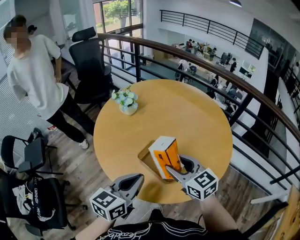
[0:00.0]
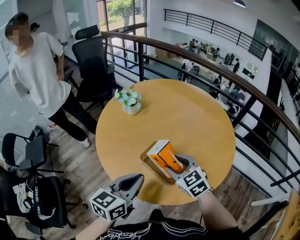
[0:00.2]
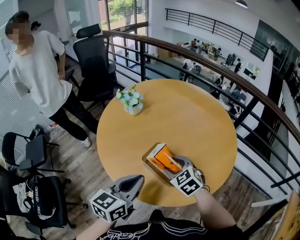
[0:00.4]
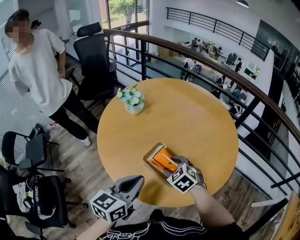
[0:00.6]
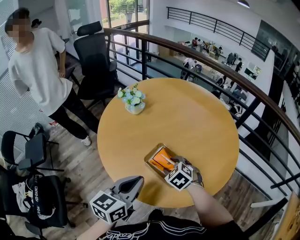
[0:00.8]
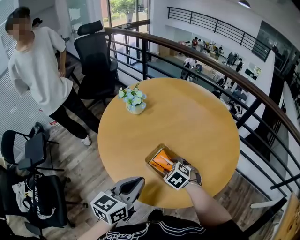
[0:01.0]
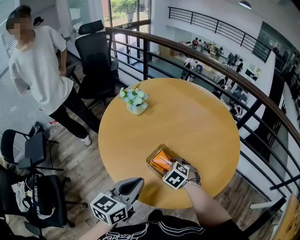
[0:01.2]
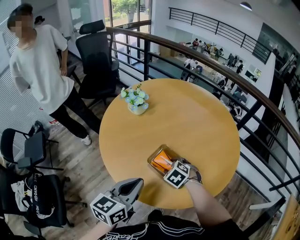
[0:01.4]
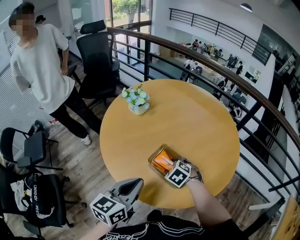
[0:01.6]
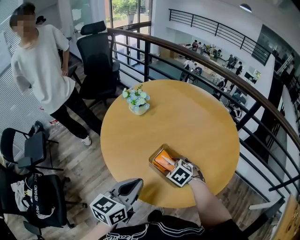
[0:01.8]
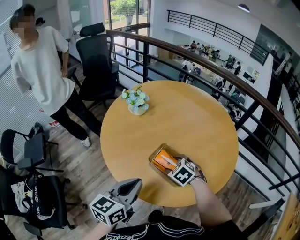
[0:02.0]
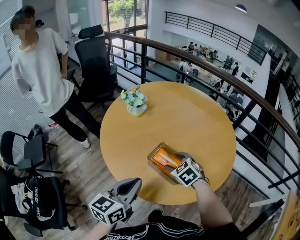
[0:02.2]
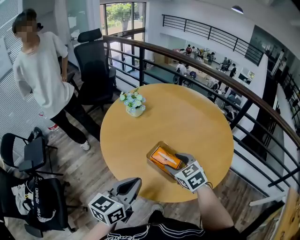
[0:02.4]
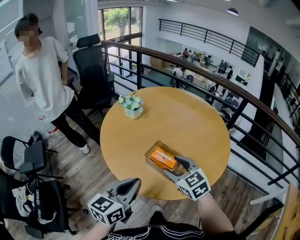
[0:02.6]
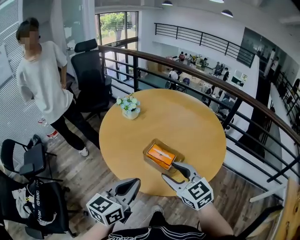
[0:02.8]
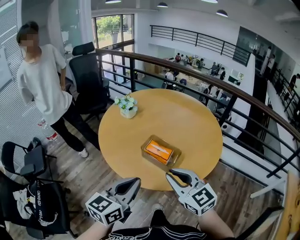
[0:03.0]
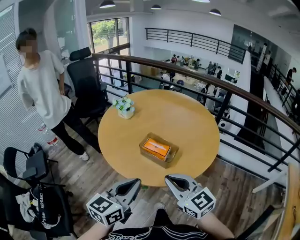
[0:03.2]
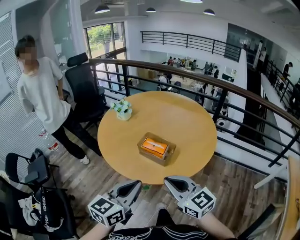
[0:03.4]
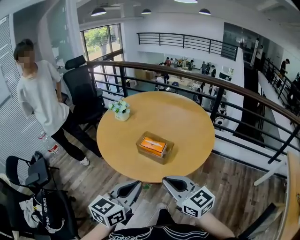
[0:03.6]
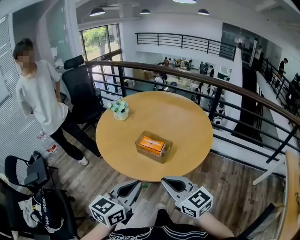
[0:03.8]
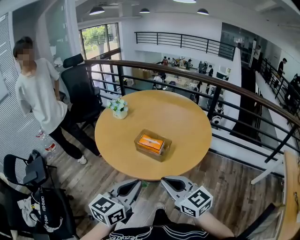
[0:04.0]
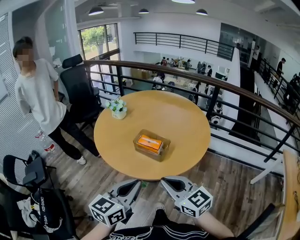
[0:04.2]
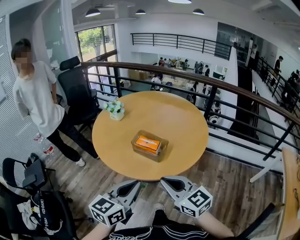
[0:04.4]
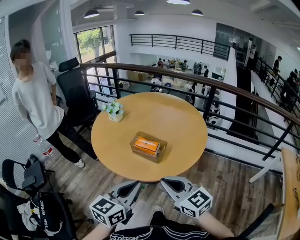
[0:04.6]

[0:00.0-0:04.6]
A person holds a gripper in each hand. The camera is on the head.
0:00.0 to 0:01.6: The right gripper travels downward by some 15 cm, and angles its fingers downward, by roughly 50 degrees.
0:01.6 to 0:03.0: The left gripper is displaced backward and upward by roughly 10 cm; the right gripper is displaced upward and backward by about 25 cm, tips its fingers upward by roughly 50 degrees, and closes its fingers.
0:03.0 to 0:04.6: The grippers both shift backward by approximately 5 cm.

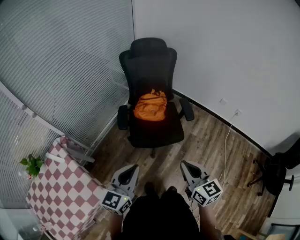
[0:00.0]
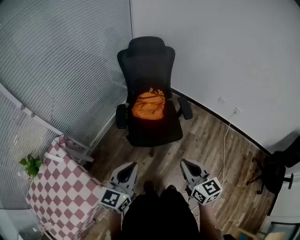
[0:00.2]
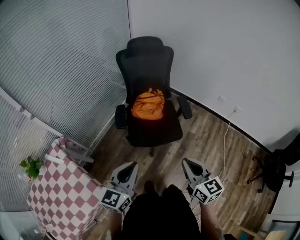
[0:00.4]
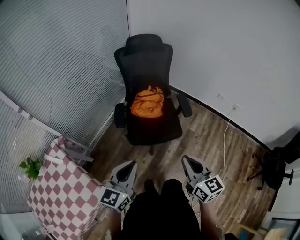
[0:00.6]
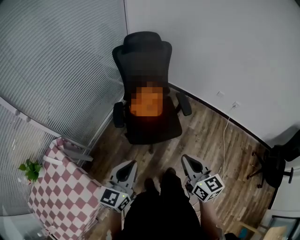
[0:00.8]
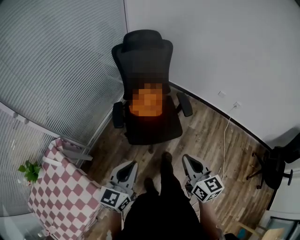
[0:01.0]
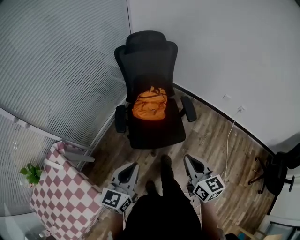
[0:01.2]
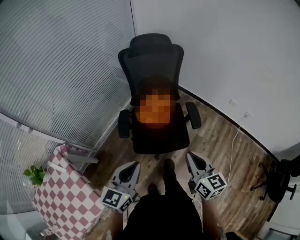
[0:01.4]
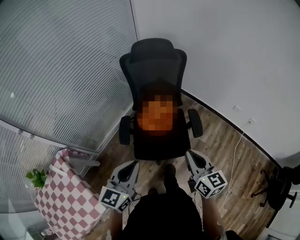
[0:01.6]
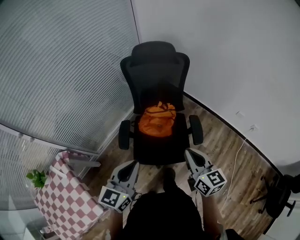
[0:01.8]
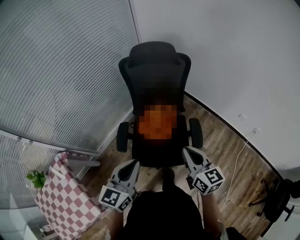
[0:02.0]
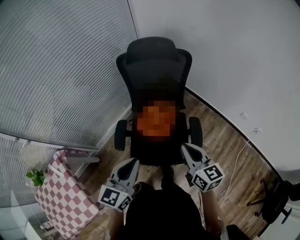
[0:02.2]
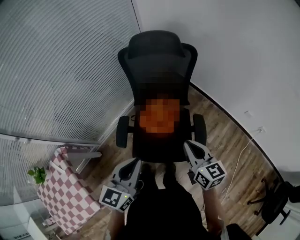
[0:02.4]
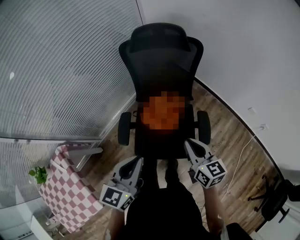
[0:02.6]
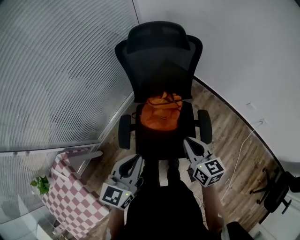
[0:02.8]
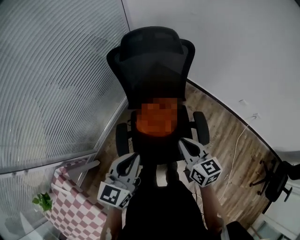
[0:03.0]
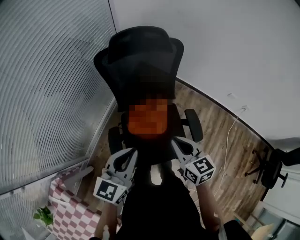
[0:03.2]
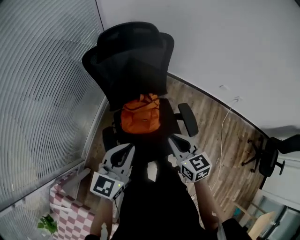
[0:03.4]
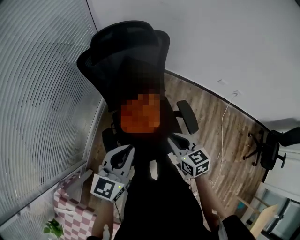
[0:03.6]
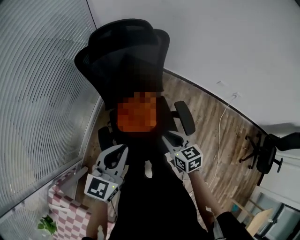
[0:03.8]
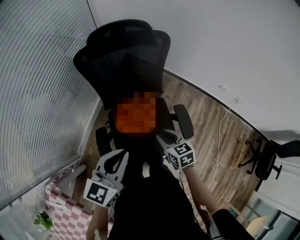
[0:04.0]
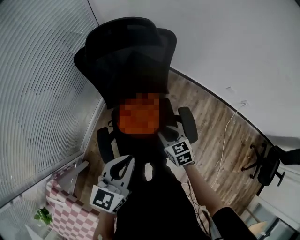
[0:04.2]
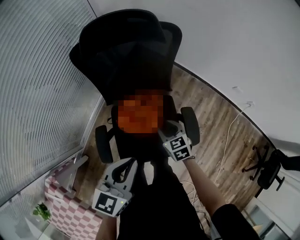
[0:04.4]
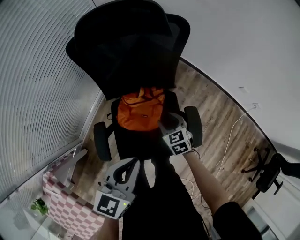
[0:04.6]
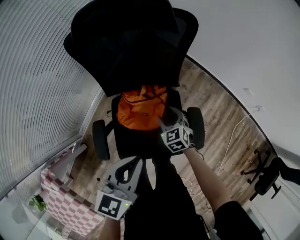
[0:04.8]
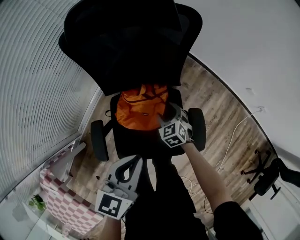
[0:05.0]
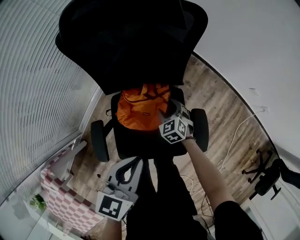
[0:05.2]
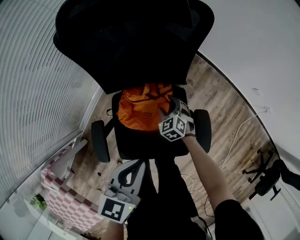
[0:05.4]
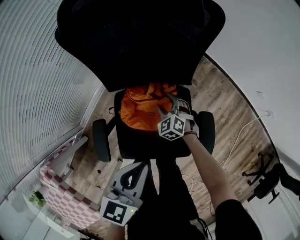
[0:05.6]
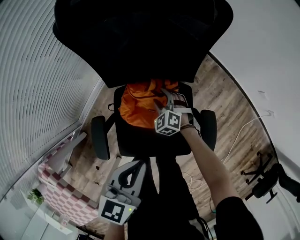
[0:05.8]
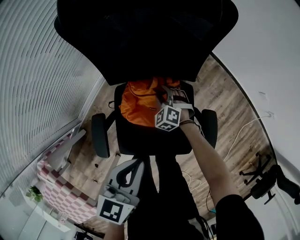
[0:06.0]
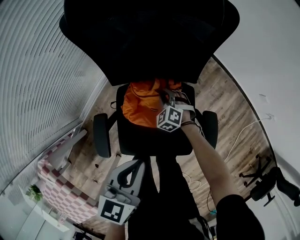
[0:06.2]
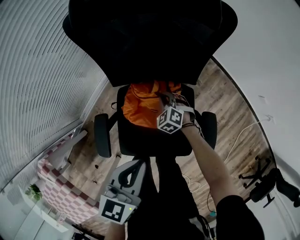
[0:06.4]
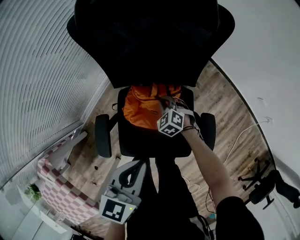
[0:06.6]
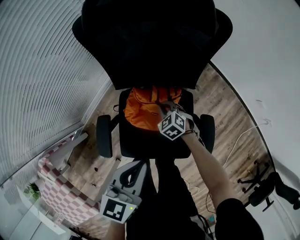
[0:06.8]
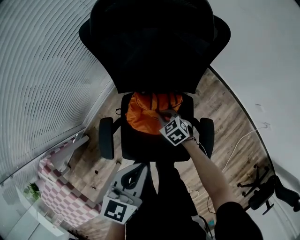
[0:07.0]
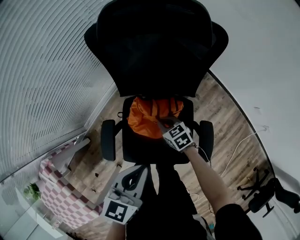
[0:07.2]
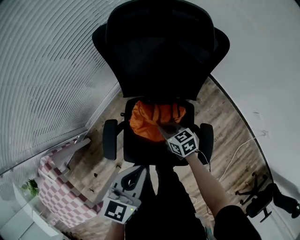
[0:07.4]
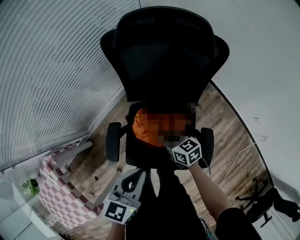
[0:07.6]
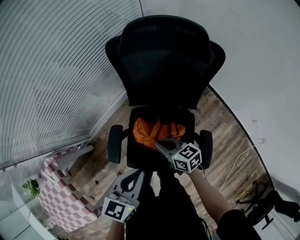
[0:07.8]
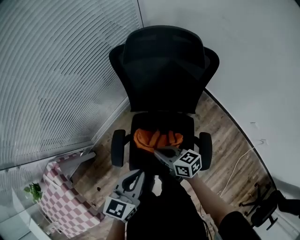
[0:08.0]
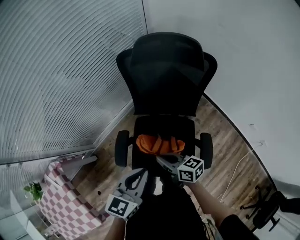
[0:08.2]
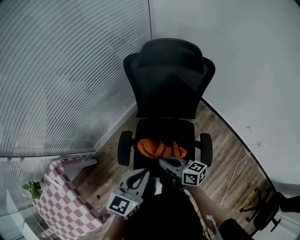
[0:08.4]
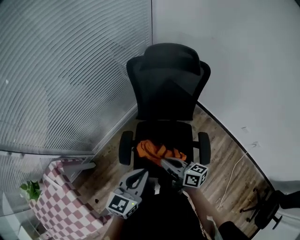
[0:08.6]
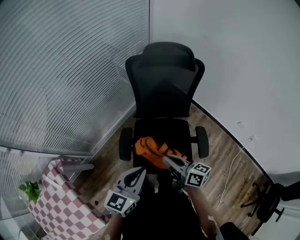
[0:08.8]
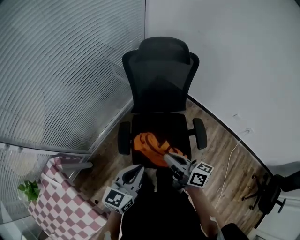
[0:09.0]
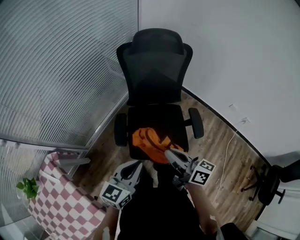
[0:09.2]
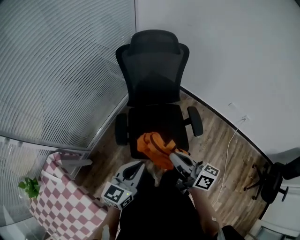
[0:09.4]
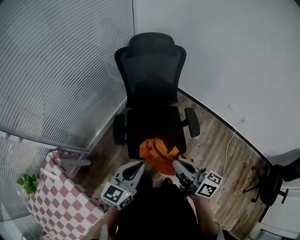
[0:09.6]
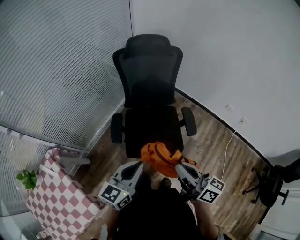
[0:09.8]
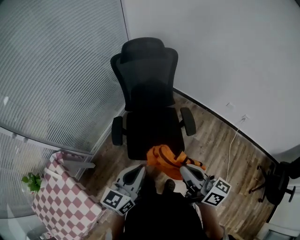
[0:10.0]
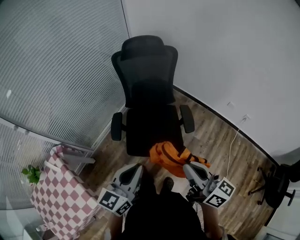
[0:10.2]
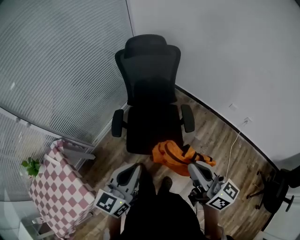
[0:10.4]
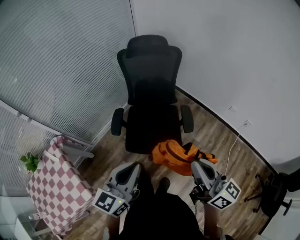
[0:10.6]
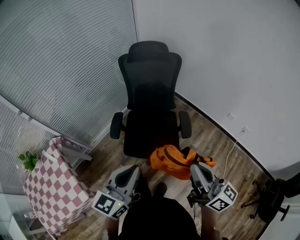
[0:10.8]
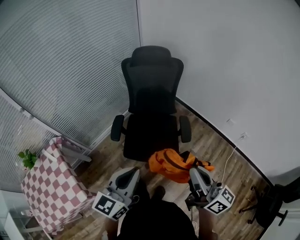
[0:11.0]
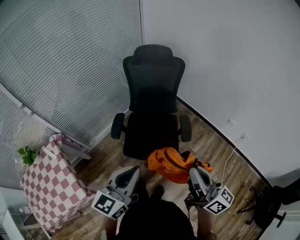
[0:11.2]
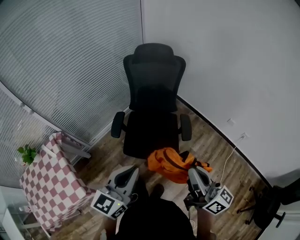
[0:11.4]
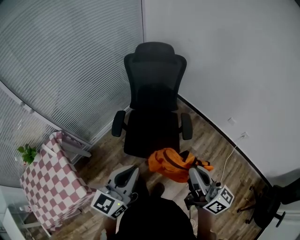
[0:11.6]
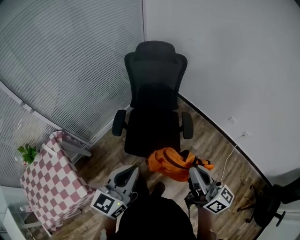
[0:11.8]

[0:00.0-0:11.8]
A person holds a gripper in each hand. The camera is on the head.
0:00.0 to 0:01.4: The two grippers go some 15 cm forward.
0:01.4 to 0:03.0: The two grippers go about 30 cm forward.
0:03.0 to 0:04.4: The right gripper heads downward and forward, covering about 25 cm, rotates approximately 30 degrees, and opens its fingers. Meanwhile the left gripper moves forward, to the right and downward, approximately 10 cm.
0:04.4 to 0:06.0: The right gripper goes about 25 cm downward and forward, and twists approximately 50 degrees counterclockwise, seen from behind. The left gripper moves downward and forward, some 15 cm.
0:06.0 to 0:07.4: The right gripper moves upward and backward, some 15 cm, rotates around the line of its fingers by about 50 degrees, clockwise from behind, and closes its fingers. The left gripper moves upward, approximately 5 cm.
0:07.4 to 0:08.8: The right gripper heads upward, backward and to the left, covering some 35 cm, and points its fingers about 30 degrees further upward. The left gripper travels backward, to the left and upward by roughly 20 cm.
0:08.8 to 0:10.4: The left gripper travels backward, to the right and upward by roughly 25 cm; the right gripper heads backward, to the right and upward, covering about 35 cm, and turns by roughly 30 degrees.
0:10.4 to 0:11.8: The grippers make only small movements.

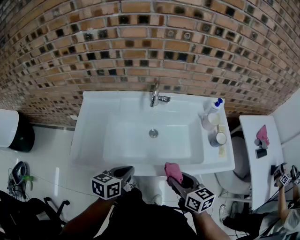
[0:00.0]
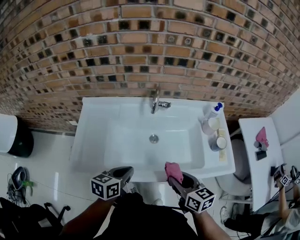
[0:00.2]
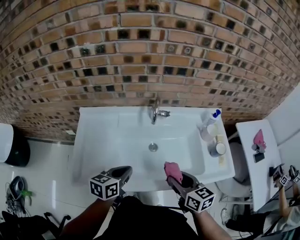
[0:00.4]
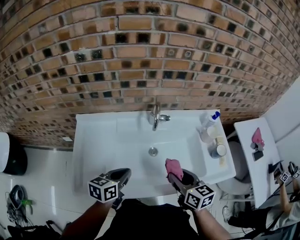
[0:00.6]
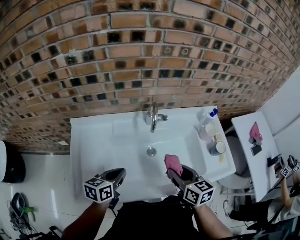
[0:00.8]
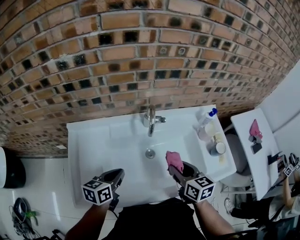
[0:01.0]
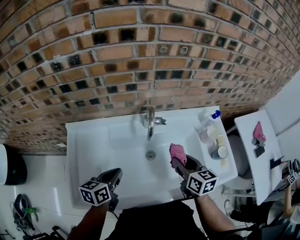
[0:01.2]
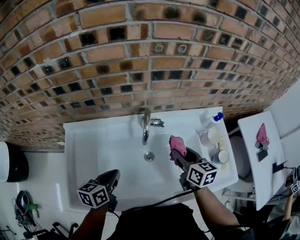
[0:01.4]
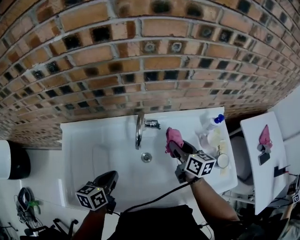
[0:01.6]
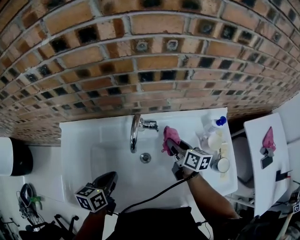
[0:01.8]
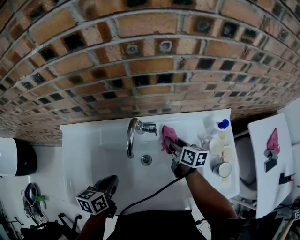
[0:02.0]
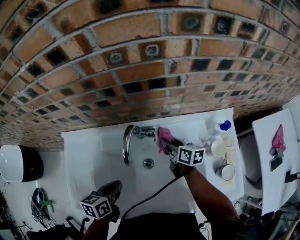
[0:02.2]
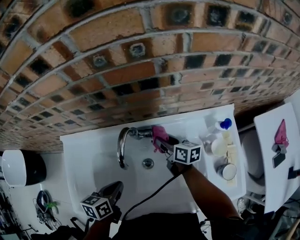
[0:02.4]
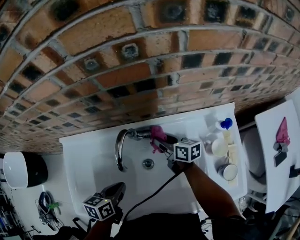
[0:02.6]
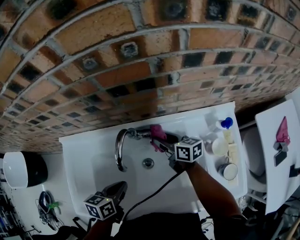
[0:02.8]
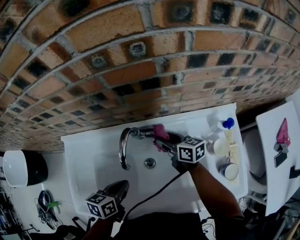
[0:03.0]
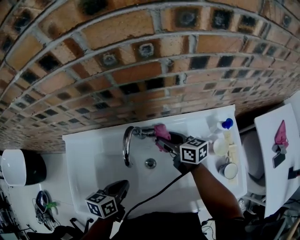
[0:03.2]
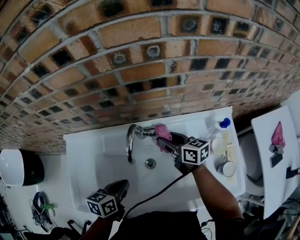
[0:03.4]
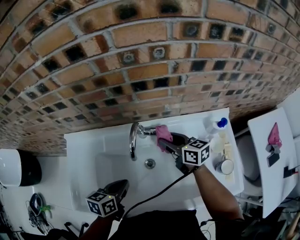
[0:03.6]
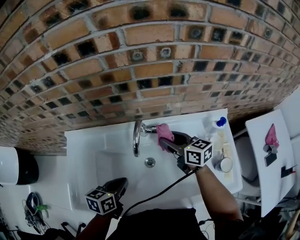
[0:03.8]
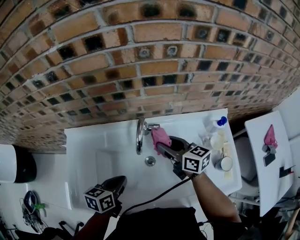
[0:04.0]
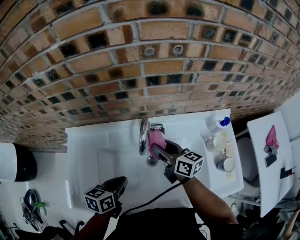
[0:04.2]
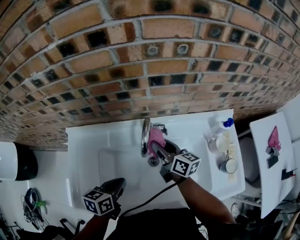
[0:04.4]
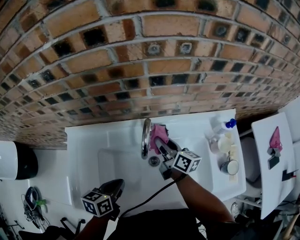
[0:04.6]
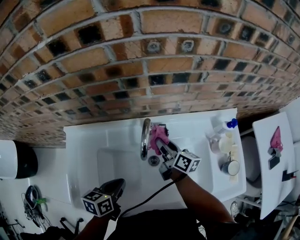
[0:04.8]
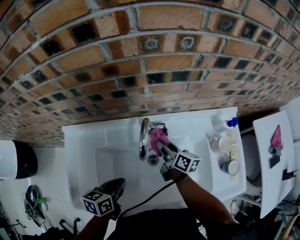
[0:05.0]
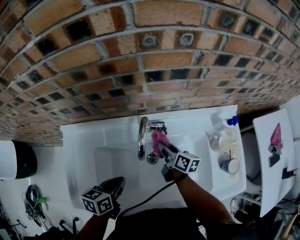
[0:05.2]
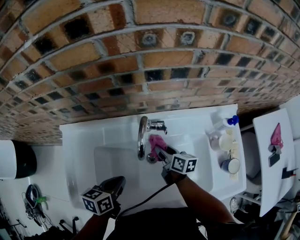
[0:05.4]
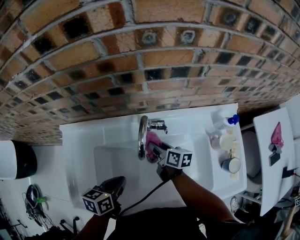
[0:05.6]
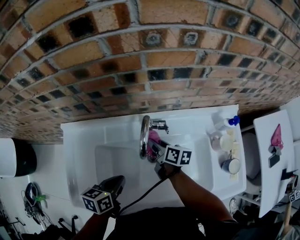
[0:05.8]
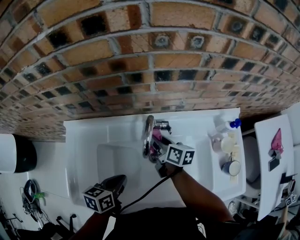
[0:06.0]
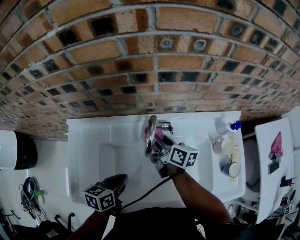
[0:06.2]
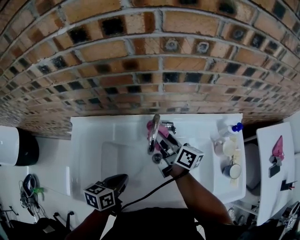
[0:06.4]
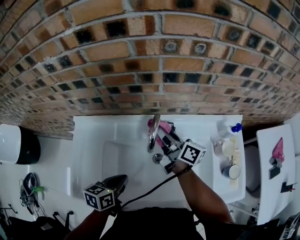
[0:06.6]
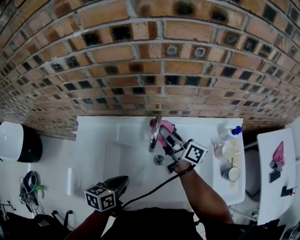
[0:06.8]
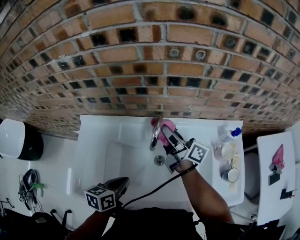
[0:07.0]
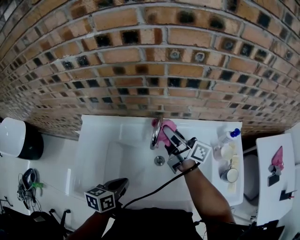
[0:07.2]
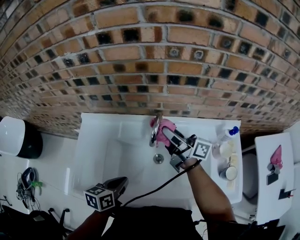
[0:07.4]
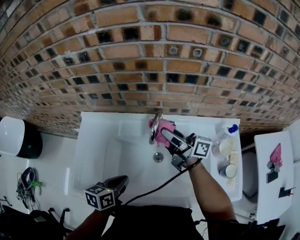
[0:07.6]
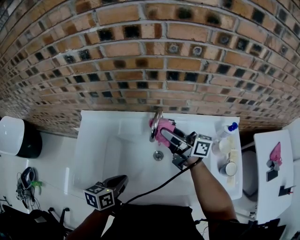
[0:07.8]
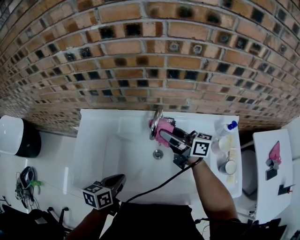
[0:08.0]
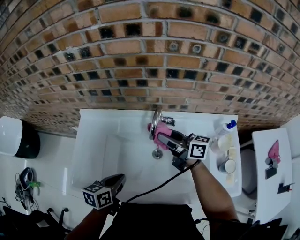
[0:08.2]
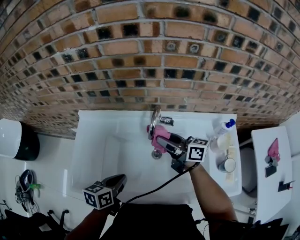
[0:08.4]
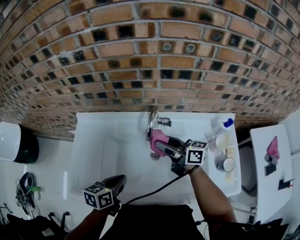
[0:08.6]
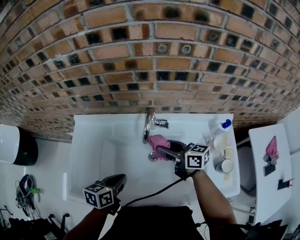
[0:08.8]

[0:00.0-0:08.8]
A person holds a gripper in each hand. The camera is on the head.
0:00.0 to 0:01.4: The right gripper heads forward, covering roughly 25 cm; the left gripper moves forward and to the left, about 20 cm.
0:01.4 to 0:03.0: The left gripper is displaced to the right by about 10 cm; the right gripper goes roughly 15 cm forward and downward, and turns by about 30 degrees.
0:03.0 to 0:04.4: The left gripper moves to the left, roughly 5 cm, while the right gripper is displaced to the left, upward and backward by some 10 cm.
0:04.4 to 0:05.8: The right gripper shifts roughly 10 cm downward, and changes its angle by approximately 20 degrees.
0:05.8 to 0:07.4: The right gripper heads upward, covering about 20 cm, and angles its fingers upward, by approximately 40 degrees; the left gripper travels backward by approximately 5 cm.
0:07.4 to 0:08.8: The right gripper shifts approximately 10 cm downward and backward, and rotates approximately 30 degrees.
